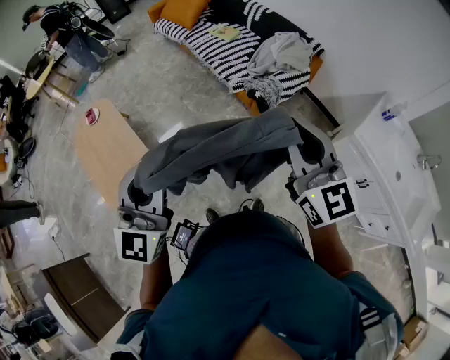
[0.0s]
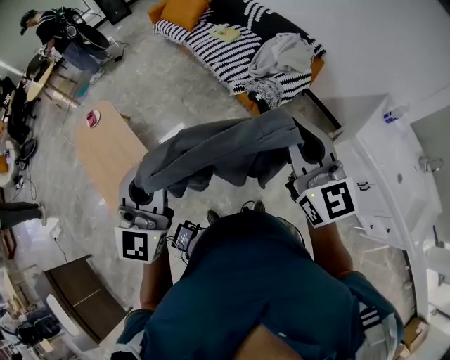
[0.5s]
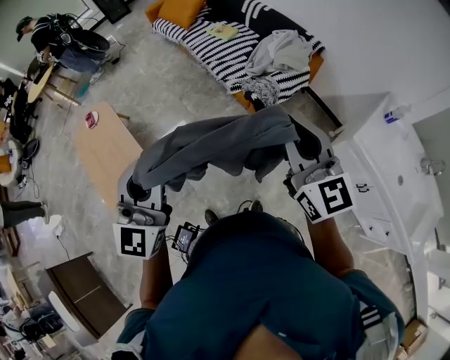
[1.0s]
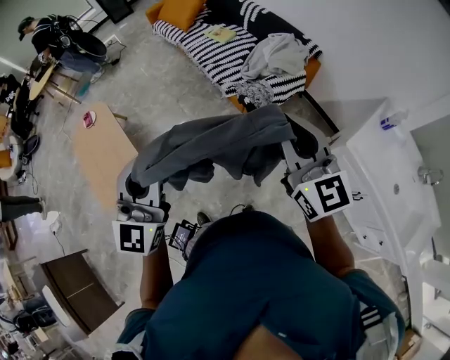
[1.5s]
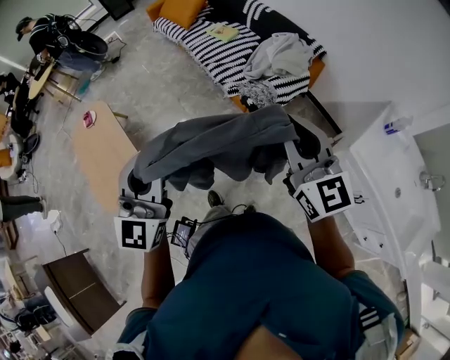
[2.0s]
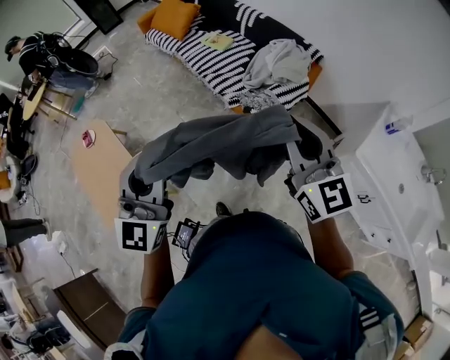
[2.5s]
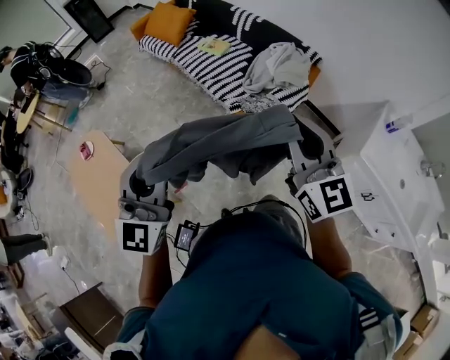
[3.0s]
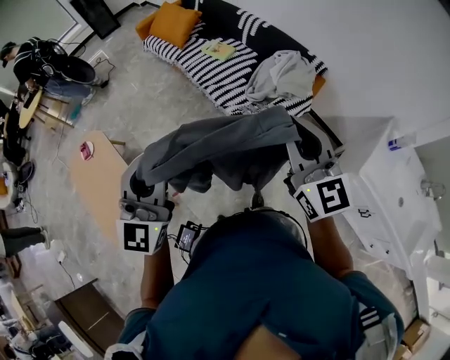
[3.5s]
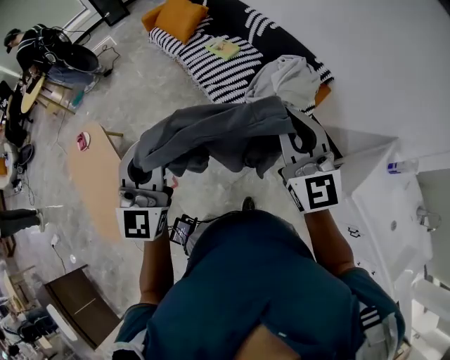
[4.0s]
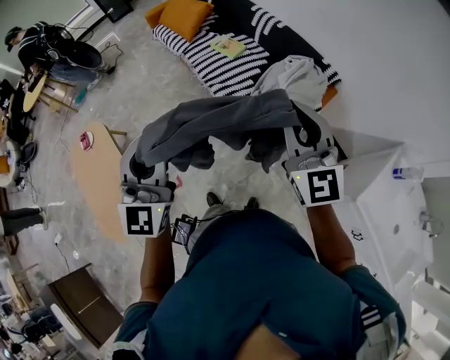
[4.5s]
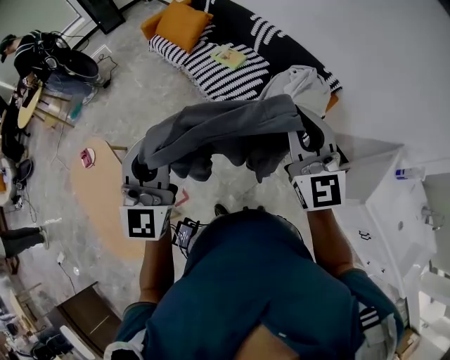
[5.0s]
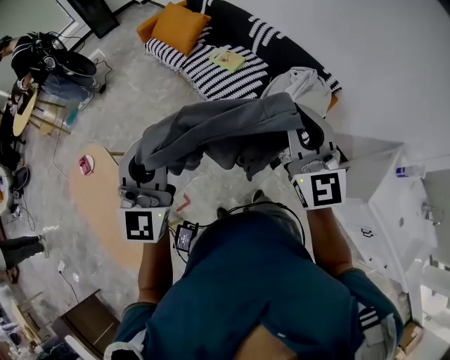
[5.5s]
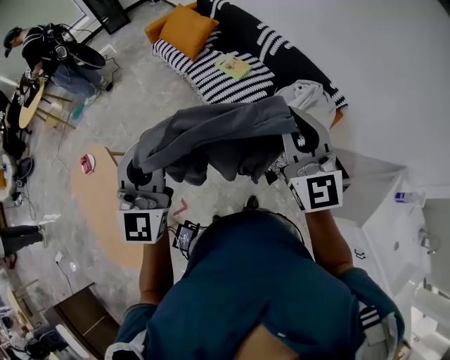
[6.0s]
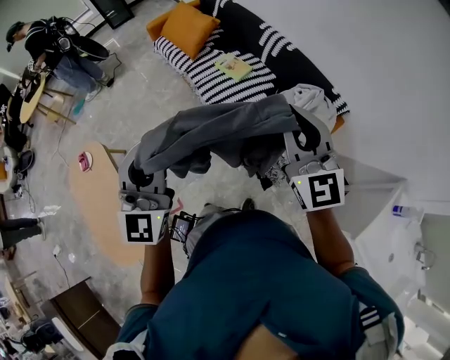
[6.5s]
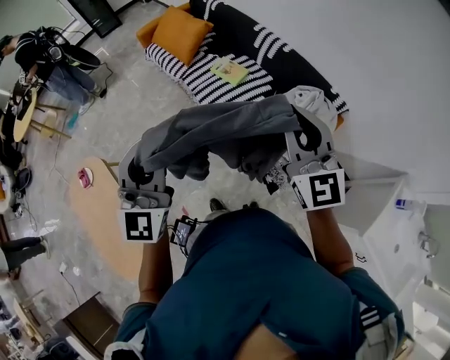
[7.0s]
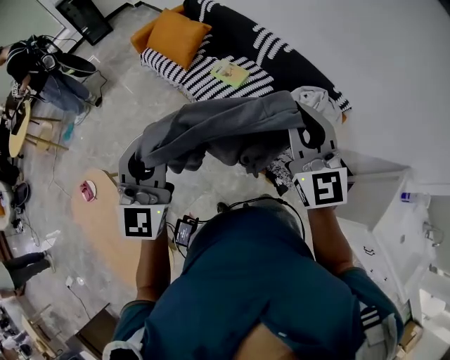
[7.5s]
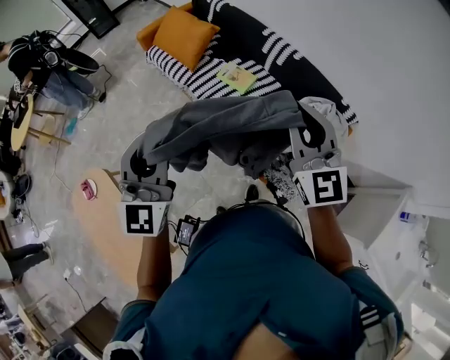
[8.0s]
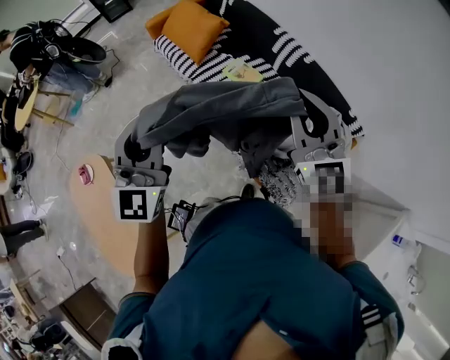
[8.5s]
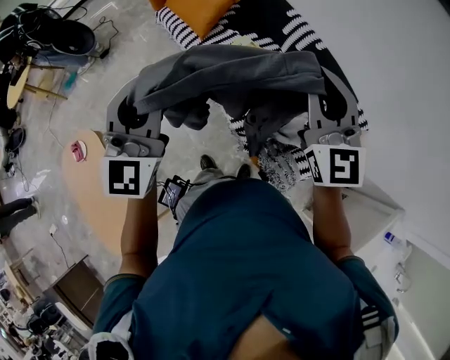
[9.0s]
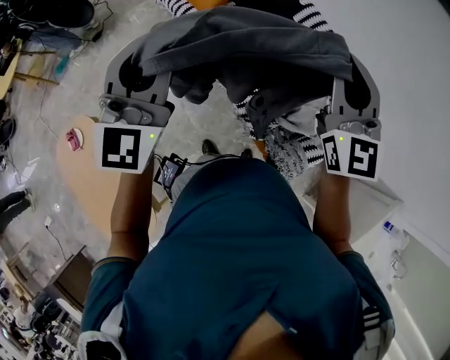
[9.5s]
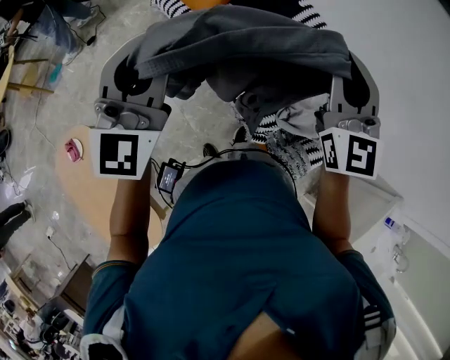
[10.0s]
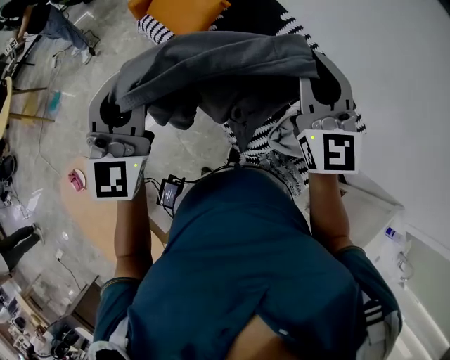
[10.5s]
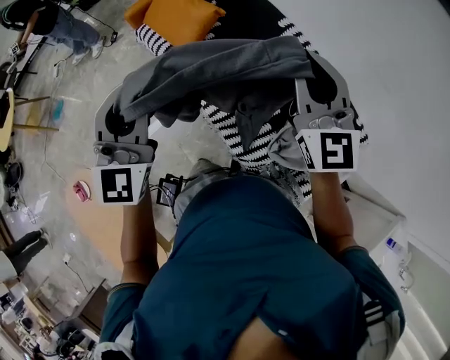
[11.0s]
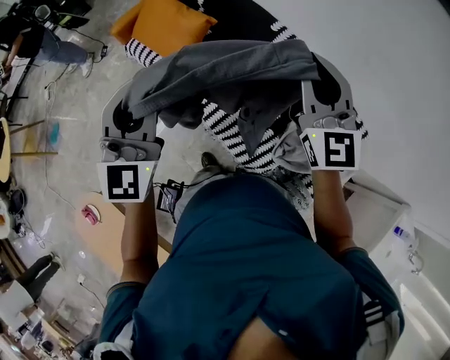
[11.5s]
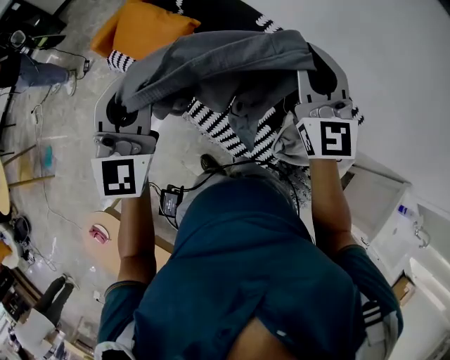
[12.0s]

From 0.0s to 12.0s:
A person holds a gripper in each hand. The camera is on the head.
From 0.0s to 2.0s: Both grippers travel together to the right and forward, approximately 15 cm.
From 2.0s to 4.0s: Both grippers move forward, roughly 25 cm.
From 4.0s to 6.0s: The two grippers go some 20 cm forward and to the left.
From 6.0s to 8.0s: Both grippers travel together forward, roughly 20 cm.
From 8.0s to 10.0s: The left gripper travels forward and to the left by approximately 20 cm; the right gripper heads forward, covering approximately 15 cm.
From 10.0s to 12.0s: Both grippers travel together forward, some 25 cm.

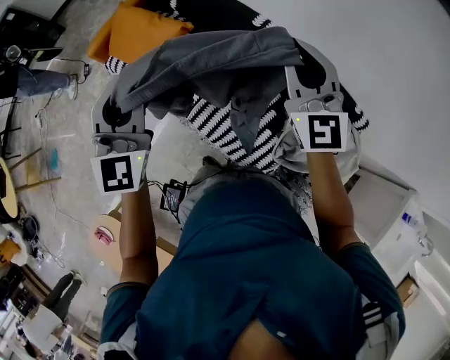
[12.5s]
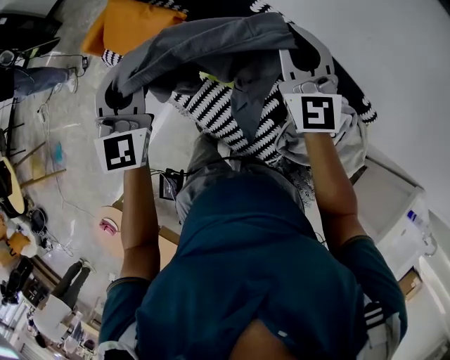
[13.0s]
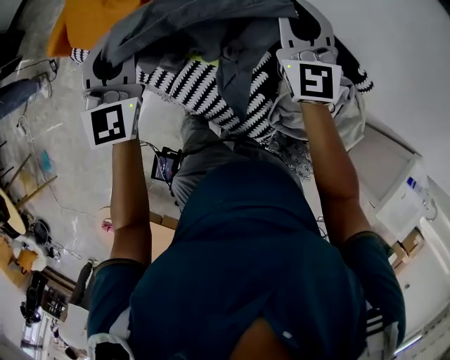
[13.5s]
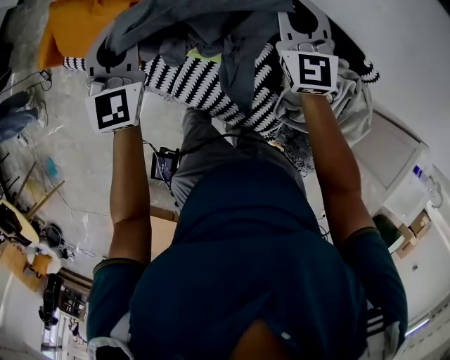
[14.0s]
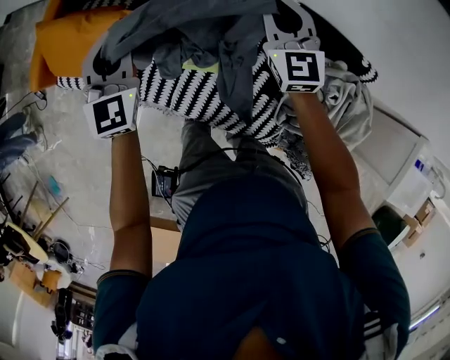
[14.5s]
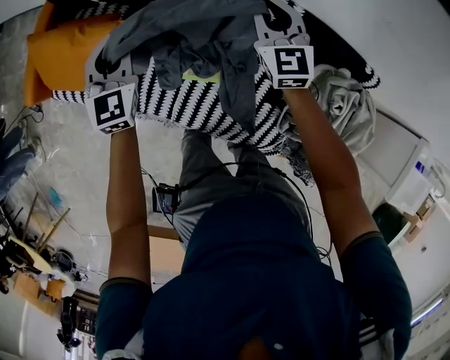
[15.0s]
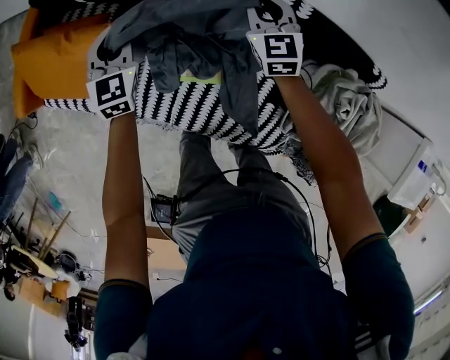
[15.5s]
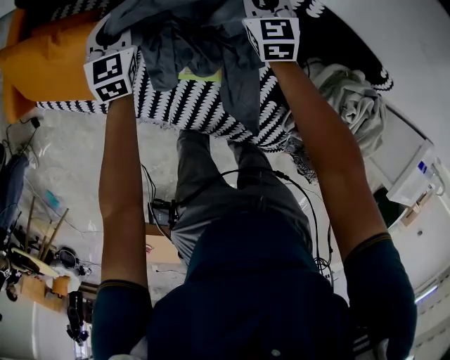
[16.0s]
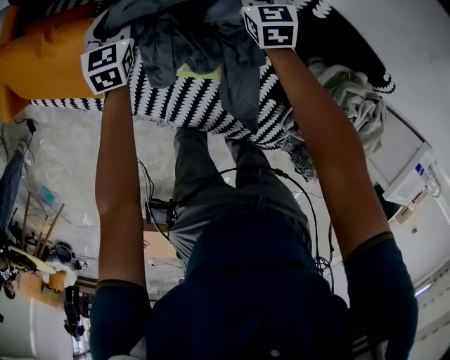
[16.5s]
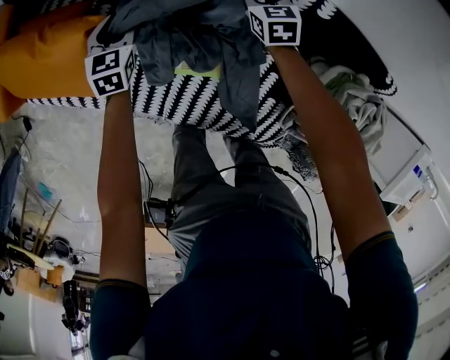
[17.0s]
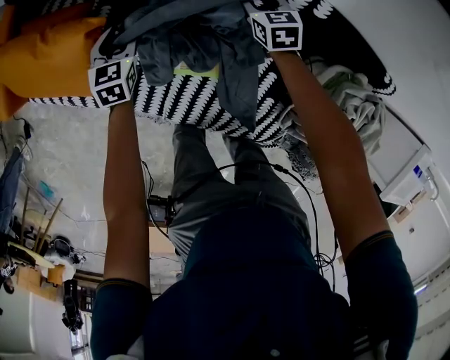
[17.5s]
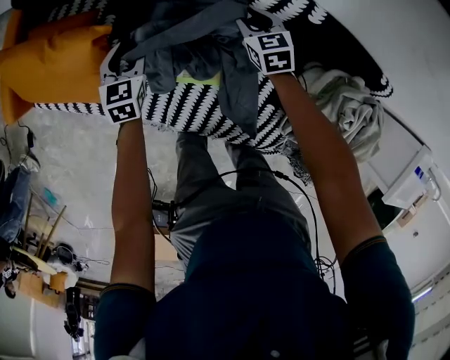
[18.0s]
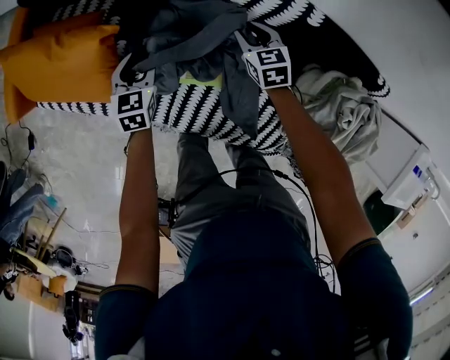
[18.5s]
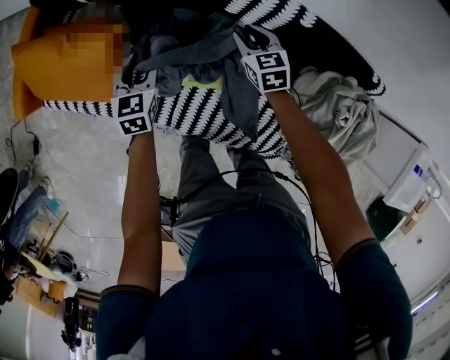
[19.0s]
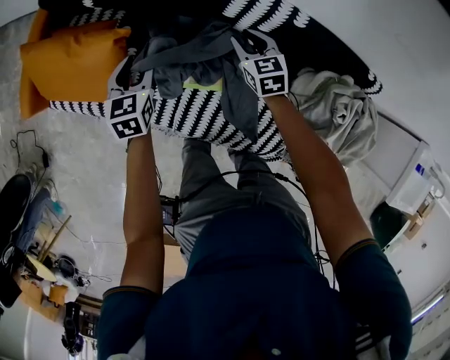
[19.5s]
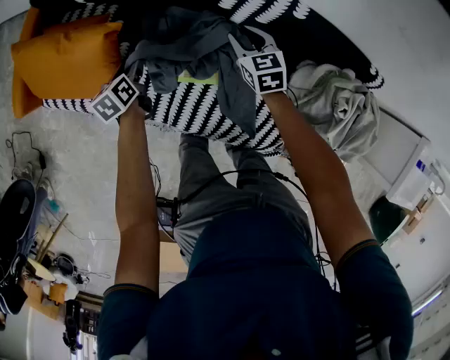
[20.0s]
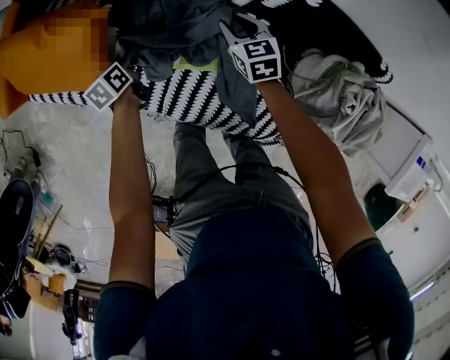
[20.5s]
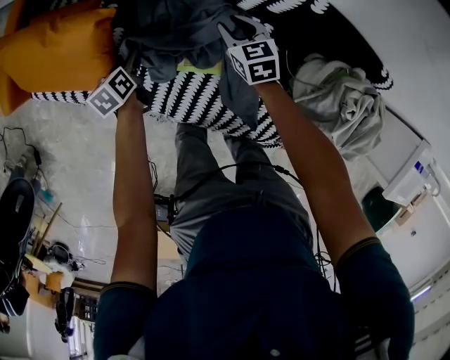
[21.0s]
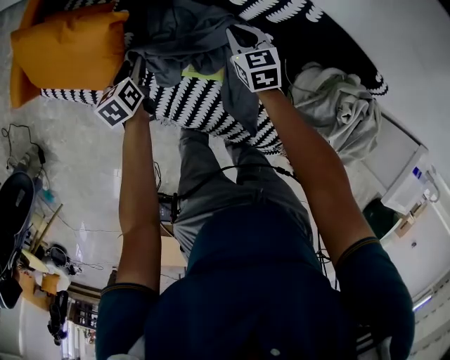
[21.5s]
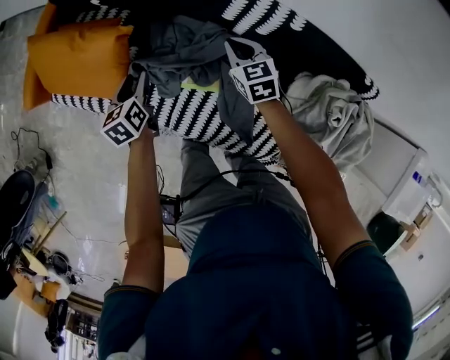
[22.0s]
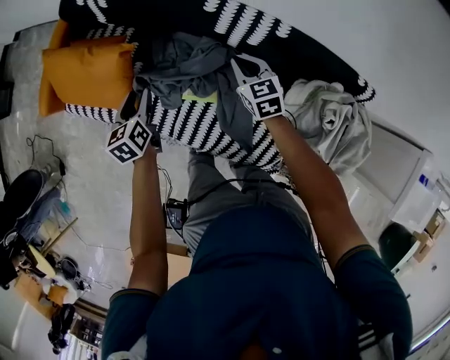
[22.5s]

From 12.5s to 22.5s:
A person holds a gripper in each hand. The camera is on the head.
From 12.5s to 14.5s: The left gripper is displaced forward and downward by some 35 cm. Meanwhile the right gripper travels downward and forward by about 30 cm, and changes its angle by roughly 20 degrees.
From 14.5s to 16.5s: Both grippers move downward and forward, roughly 35 cm. The left gripper rotates roughly 30 degrees; the right gripper changes its angle by about 30 degrees.
From 16.5s to 18.5s: The two grippers go roughly 10 cm backward.
From 18.5s to 20.5s: The right gripper travels upward and back again, about 10 cm each way. The left gripper shifts roughly 10 cm downward, and rolls counterclockwise, seen from behind, by approximately 40 degrees.
From 20.5s to 22.5s: The right gripper heads upward, covering roughly 15 cm, and closes its fingers, while the left gripper is displaced upward by some 25 cm, and turns by roughly 20 degrees.

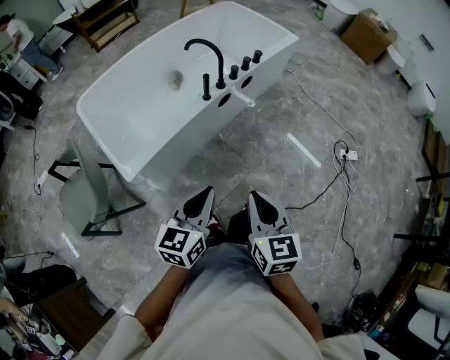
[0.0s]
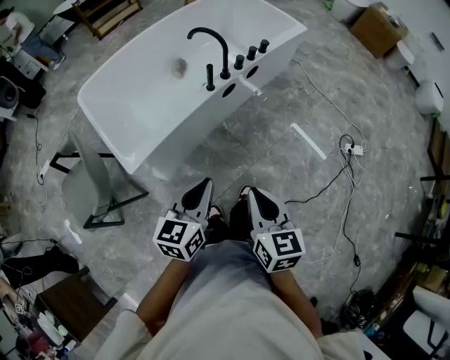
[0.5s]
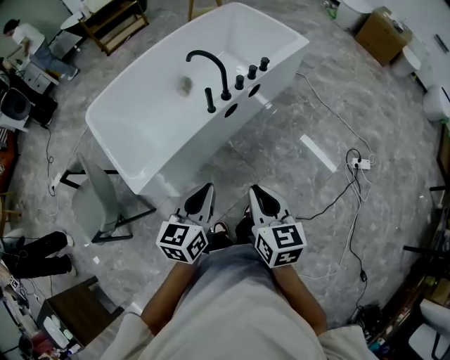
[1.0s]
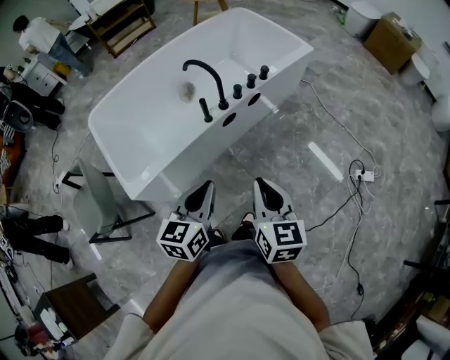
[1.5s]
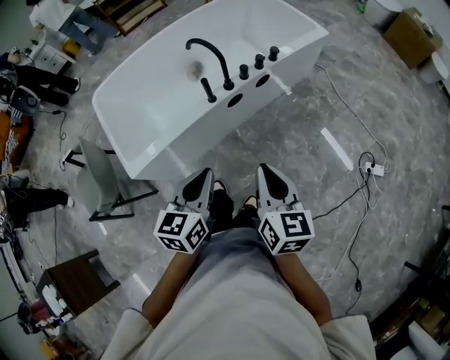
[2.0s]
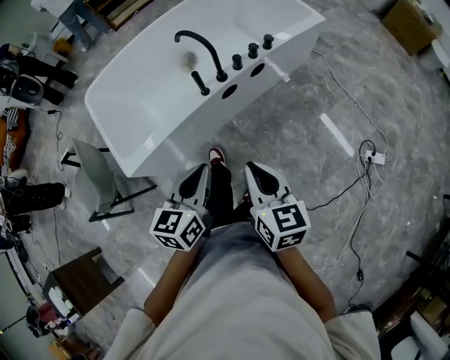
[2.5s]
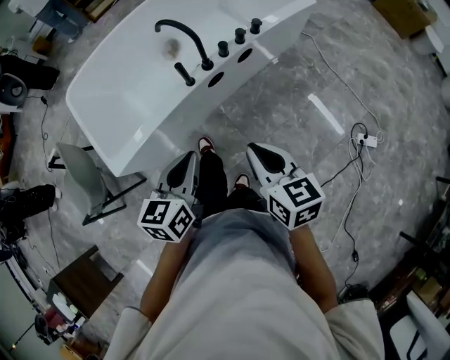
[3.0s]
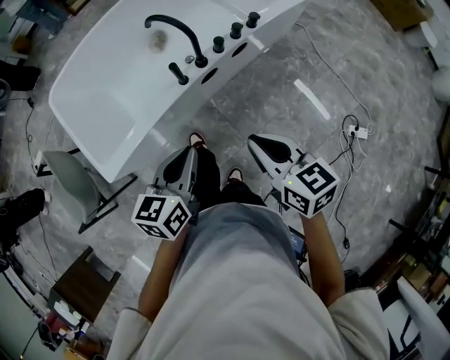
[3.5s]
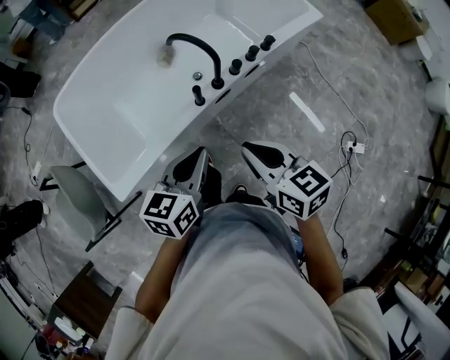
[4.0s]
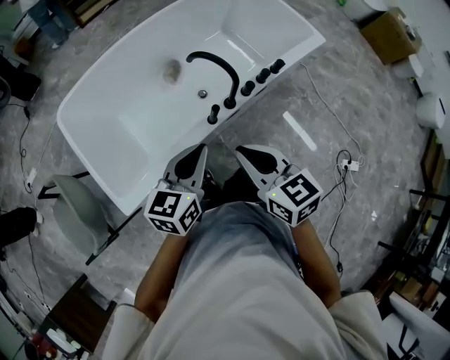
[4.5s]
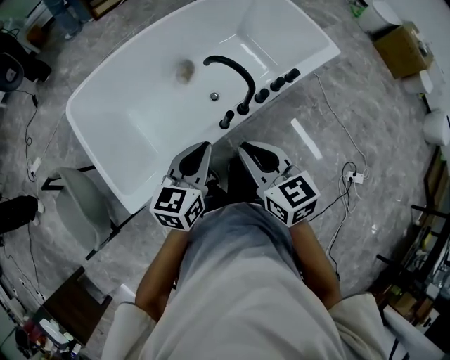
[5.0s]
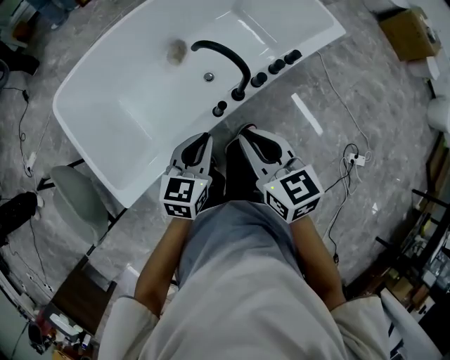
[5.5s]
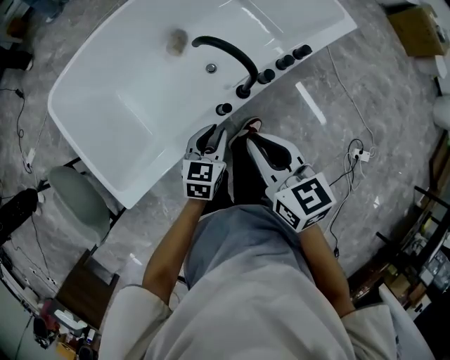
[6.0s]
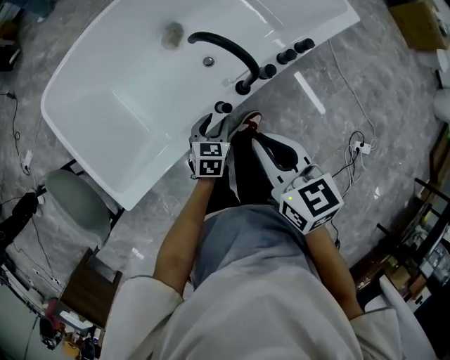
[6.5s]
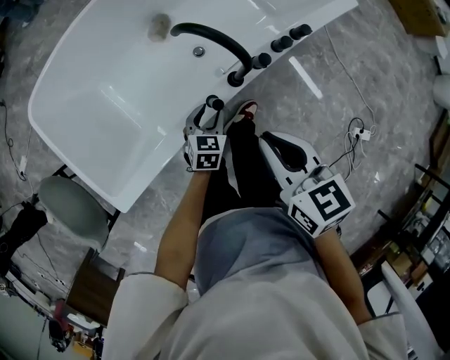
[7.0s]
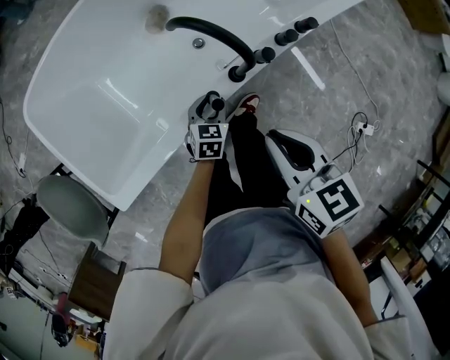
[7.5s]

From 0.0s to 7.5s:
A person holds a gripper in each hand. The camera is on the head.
From 0.0s to 2.0s: Both grippers travel together forward and to the right, roughly 20 cm.
From 2.0s to 4.0s: The right gripper goes about 20 cm forward and to the left, and turns by approximately 30 degrees. Meanwhile the left gripper goes approximately 20 cm forward.
From 4.0s to 5.5s: The left gripper travels forward and downward by about 15 cm, while the right gripper is displaced forward and to the left by approximately 15 cm.
From 5.5s to 7.5s: The right gripper shifts some 10 cm downward and to the right. Meanwhile the left gripper goes approximately 30 cm downward, and opens up.
